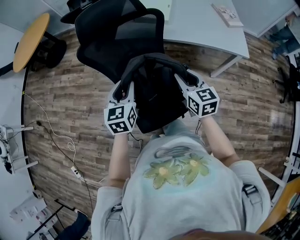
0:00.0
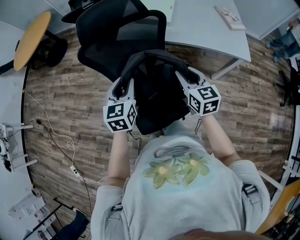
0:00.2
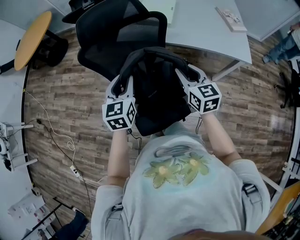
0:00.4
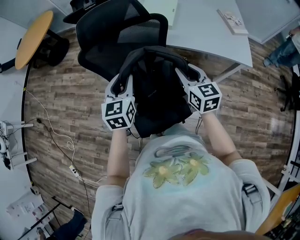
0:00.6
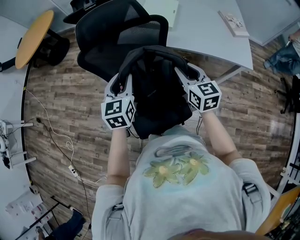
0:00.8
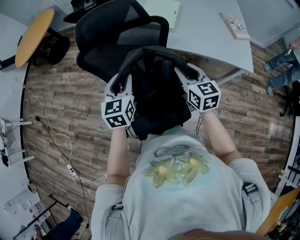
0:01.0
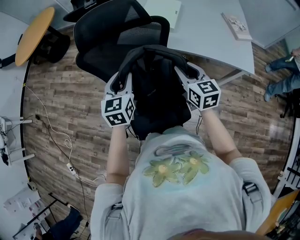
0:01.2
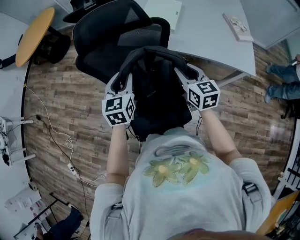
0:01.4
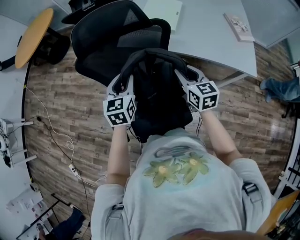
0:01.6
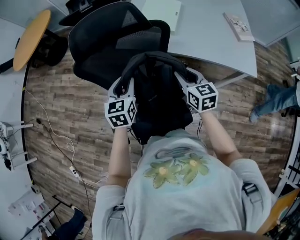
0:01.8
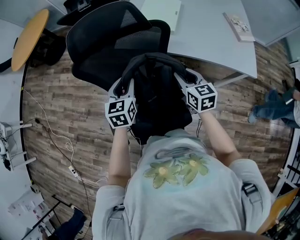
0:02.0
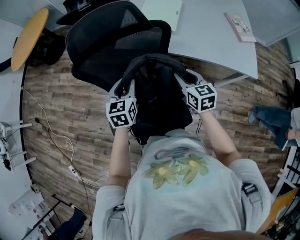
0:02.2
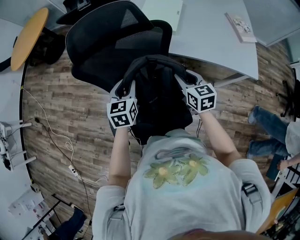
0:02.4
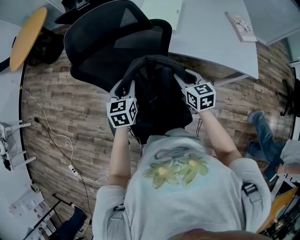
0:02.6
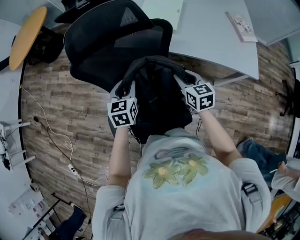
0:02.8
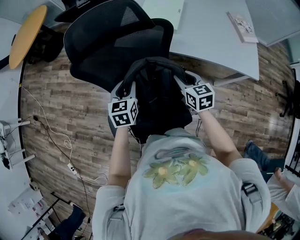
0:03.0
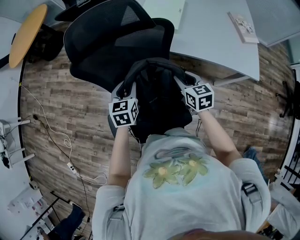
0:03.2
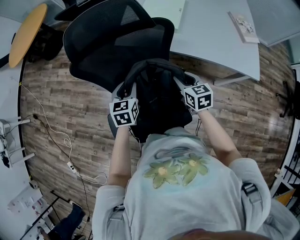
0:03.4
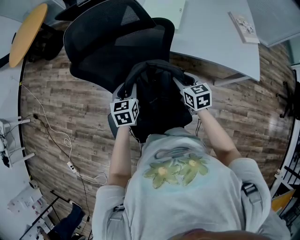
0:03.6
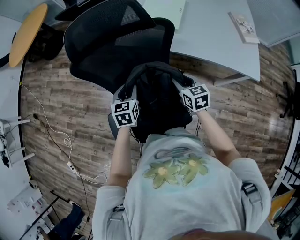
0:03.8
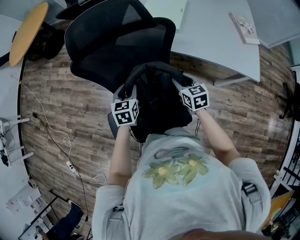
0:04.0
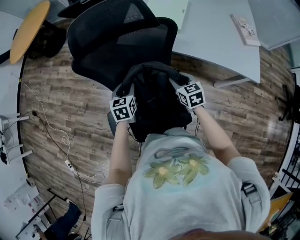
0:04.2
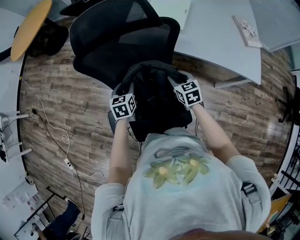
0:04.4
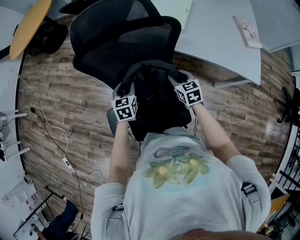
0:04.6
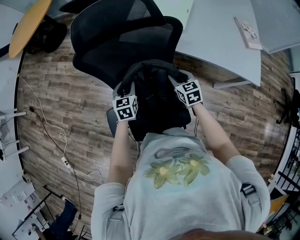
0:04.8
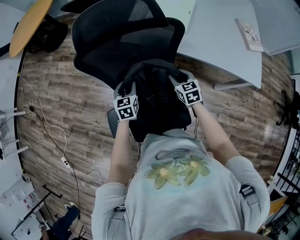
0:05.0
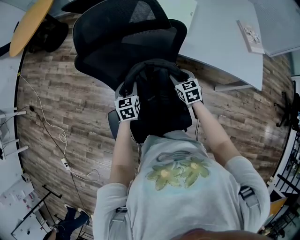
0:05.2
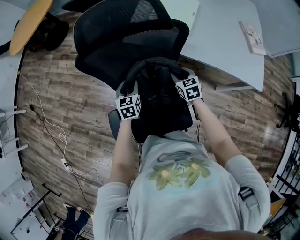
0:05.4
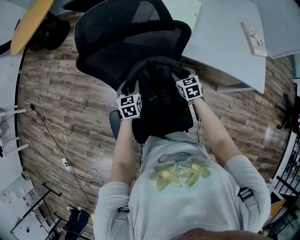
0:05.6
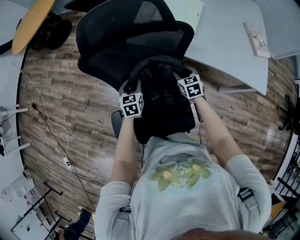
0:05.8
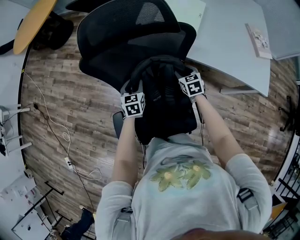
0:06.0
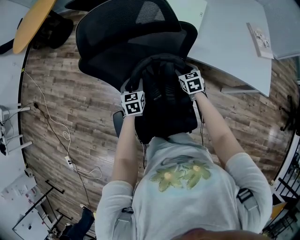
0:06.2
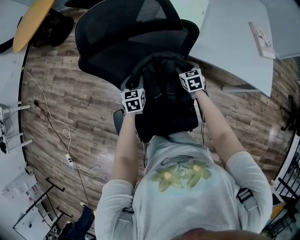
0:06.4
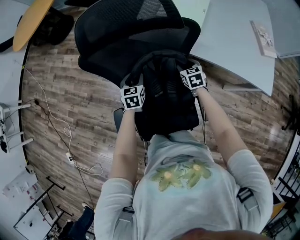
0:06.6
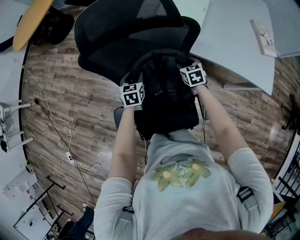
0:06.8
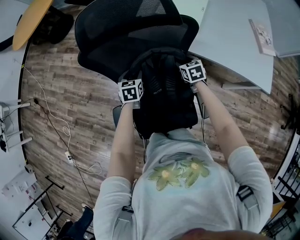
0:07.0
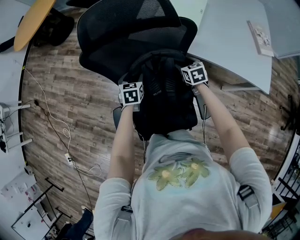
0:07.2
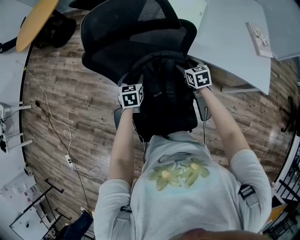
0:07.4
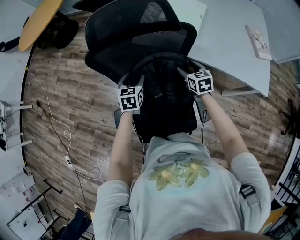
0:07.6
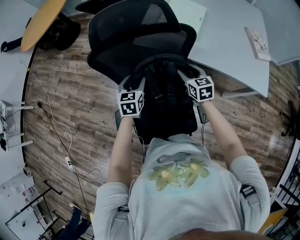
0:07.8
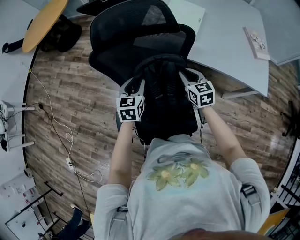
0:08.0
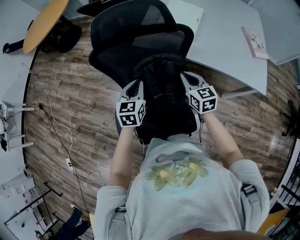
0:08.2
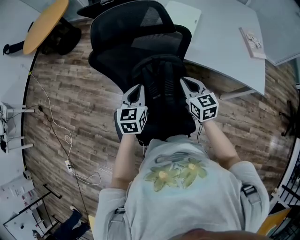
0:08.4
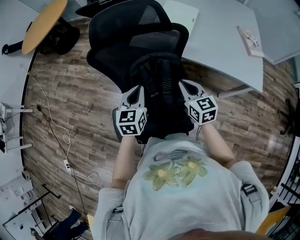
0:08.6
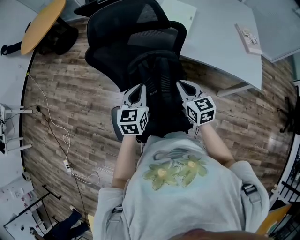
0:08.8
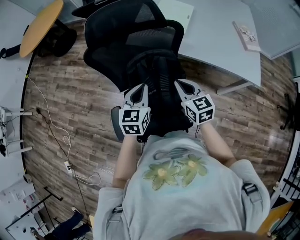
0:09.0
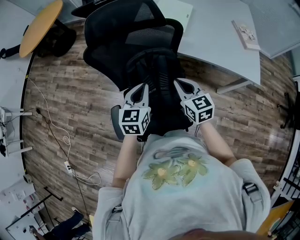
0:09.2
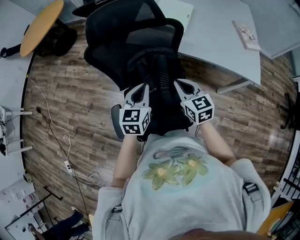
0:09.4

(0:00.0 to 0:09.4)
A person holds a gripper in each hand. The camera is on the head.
0:00.0 - 0:01.6: The two grippers go some 10 cm forward.
0:01.6 - 0:03.2: The grippers both shift downward by about 10 cm.
0:03.2 - 0:04.8: Both grippers travel together downward, roughly 5 cm.
0:04.8 - 0:06.2: The right gripper moves forward and downward, approximately 10 cm, while the left gripper travels forward by some 5 cm.
0:06.2 - 0:07.8: The two grippers go about 10 cm upward.
0:07.8 - 0:09.4: The left gripper goes some 15 cm backward, upward and to the right, and closes its fingers; the right gripper travels backward and upward by about 15 cm, and closes its fingers.

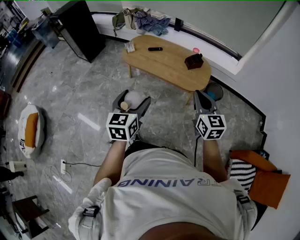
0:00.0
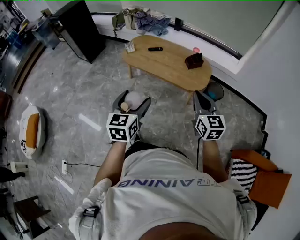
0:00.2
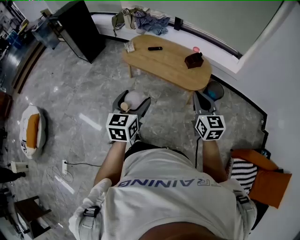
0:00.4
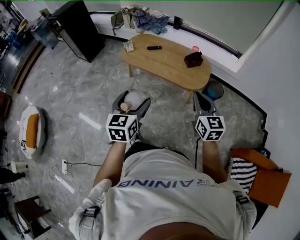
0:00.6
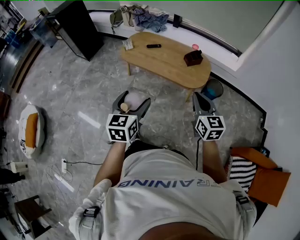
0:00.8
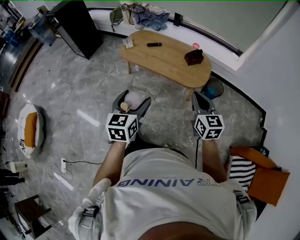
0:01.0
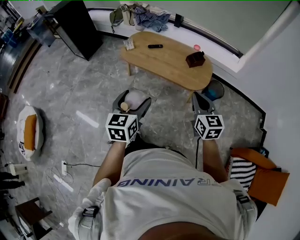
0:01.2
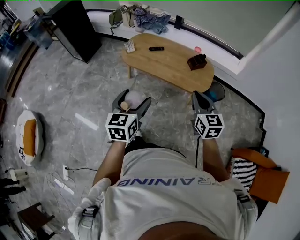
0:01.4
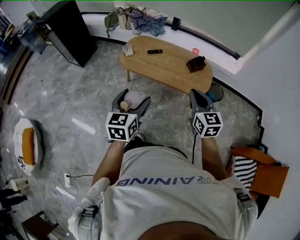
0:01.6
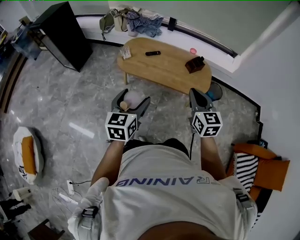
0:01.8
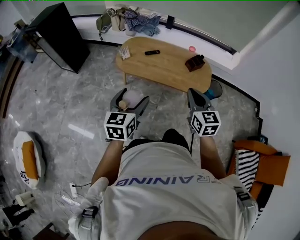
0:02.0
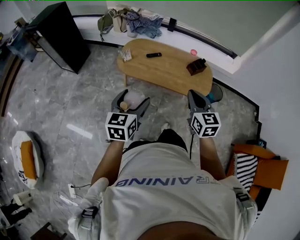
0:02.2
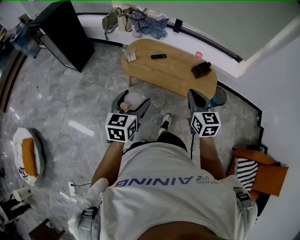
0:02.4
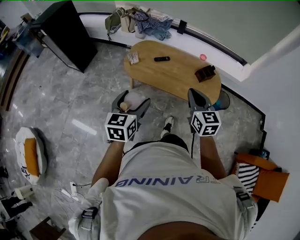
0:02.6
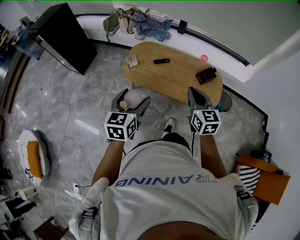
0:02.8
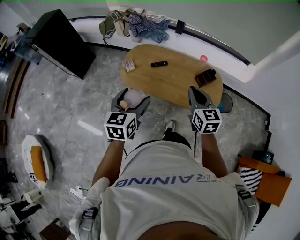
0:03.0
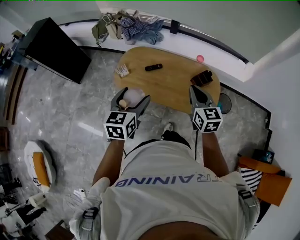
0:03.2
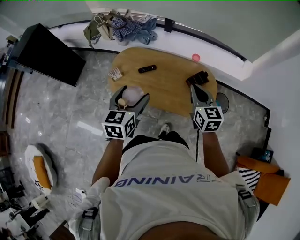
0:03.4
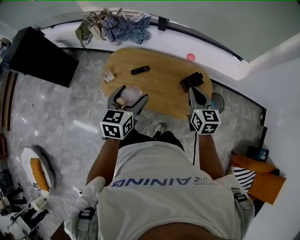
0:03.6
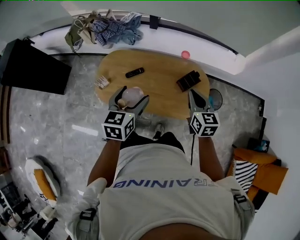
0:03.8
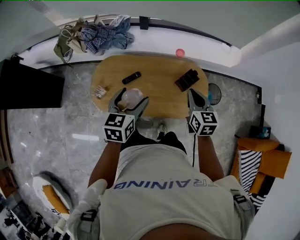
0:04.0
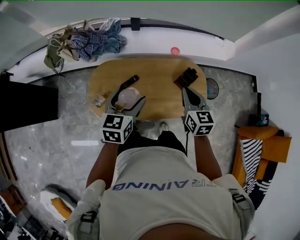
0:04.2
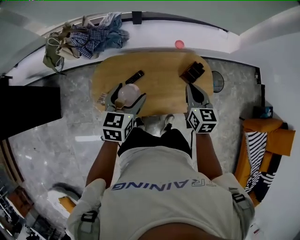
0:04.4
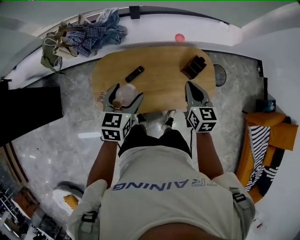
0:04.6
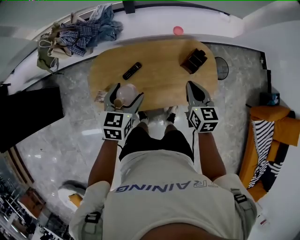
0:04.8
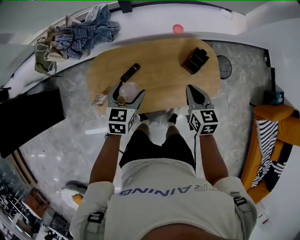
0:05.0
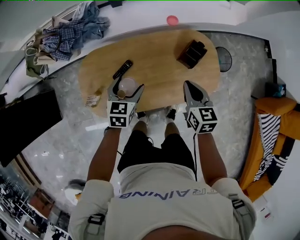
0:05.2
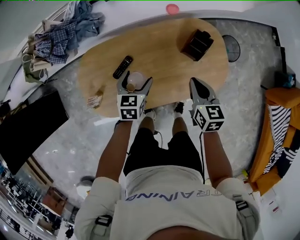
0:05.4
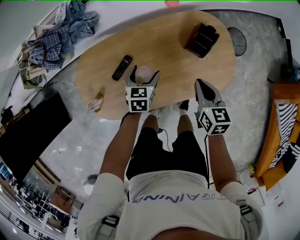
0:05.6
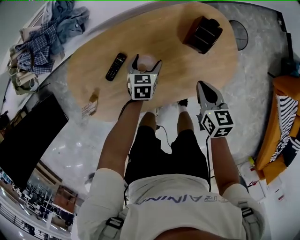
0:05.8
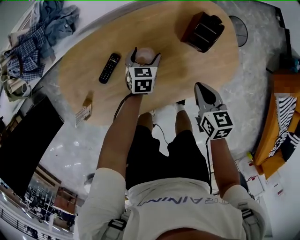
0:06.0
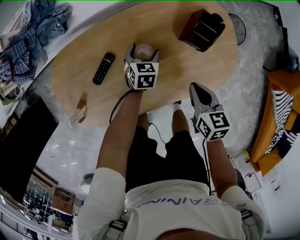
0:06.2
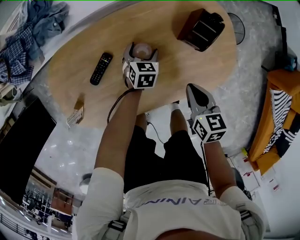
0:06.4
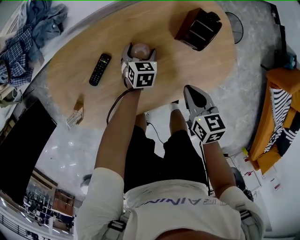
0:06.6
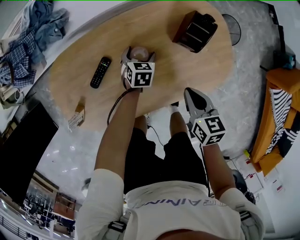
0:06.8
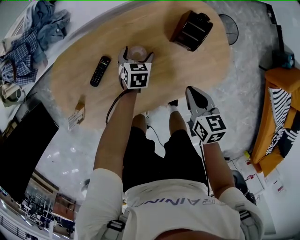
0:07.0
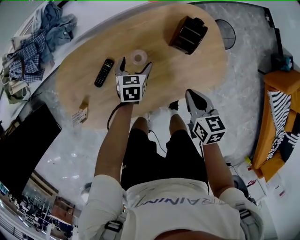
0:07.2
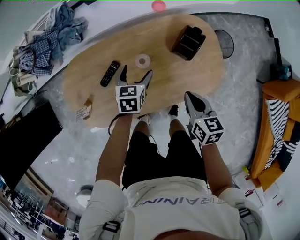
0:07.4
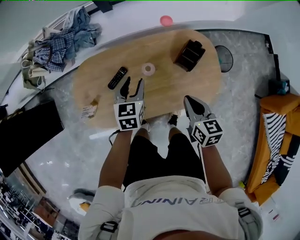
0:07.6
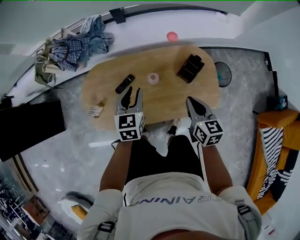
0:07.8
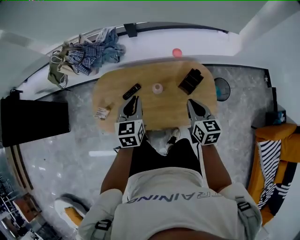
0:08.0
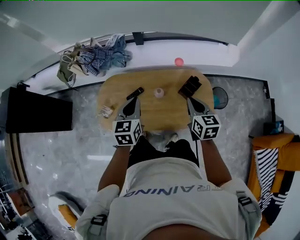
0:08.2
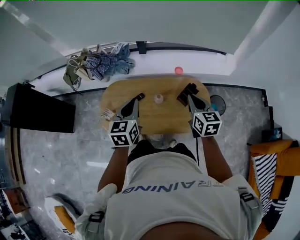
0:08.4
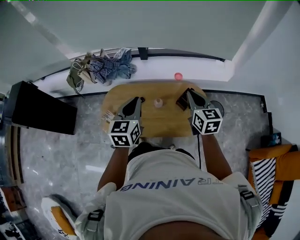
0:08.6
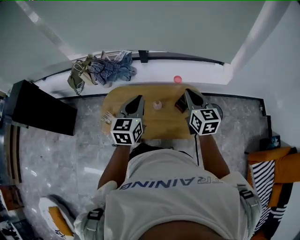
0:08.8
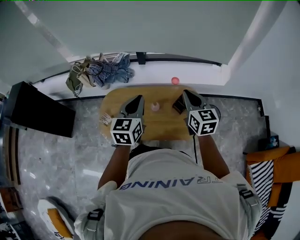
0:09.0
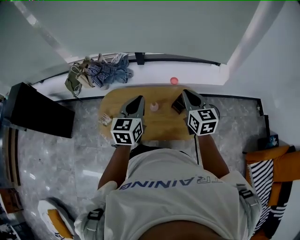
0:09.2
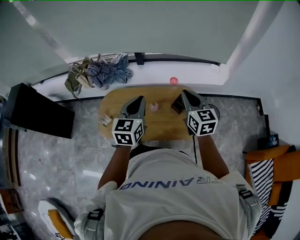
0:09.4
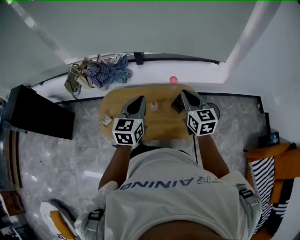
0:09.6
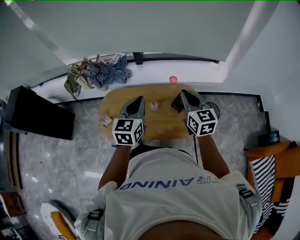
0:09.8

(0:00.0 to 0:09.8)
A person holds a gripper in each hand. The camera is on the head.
0:00.0 - 0:01.4: The left gripper goes roughly 10 cm forward and to the left; the right gripper moves to the left and forward, some 10 cm.
0:01.4 - 0:02.8: Both grippers move forward and to the left, about 25 cm.
0:02.8 - 0:04.2: The right gripper shifts by some 30 cm, and rotates about 30 degrees, while the left gripper changes place by some 40 cm, and swivels about 30 degrees.
0:04.2 - 0:05.6: The grippers both shift downward by about 30 cm. The right gripper swivels about 20 degrees, while the left gripper turns by some 20 degrees.
0:05.6 - 0:07.0: The left gripper travels downward, forward and to the right by approximately 15 cm; the right gripper travels downward by approximately 5 cm.
0:07.0 - 0:08.4: The left gripper goes approximately 50 cm upward, points its fingers approximately 30 degrees further upward, and closes its fingers, while the right gripper shifts roughly 35 cm upward, and swivels some 30 degrees.
0:08.4 - 0:09.8: The left gripper heads to the right and upward, covering roughly 10 cm, while the right gripper is displaced upward by approximately 10 cm.

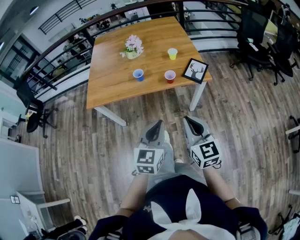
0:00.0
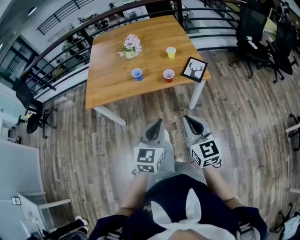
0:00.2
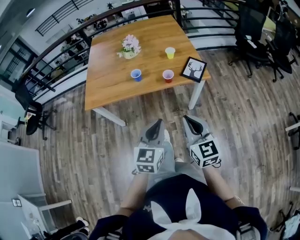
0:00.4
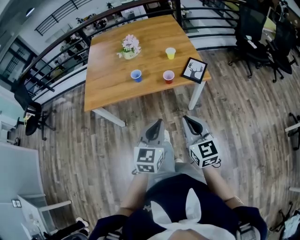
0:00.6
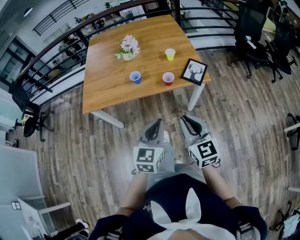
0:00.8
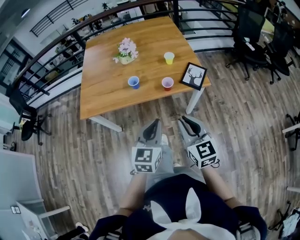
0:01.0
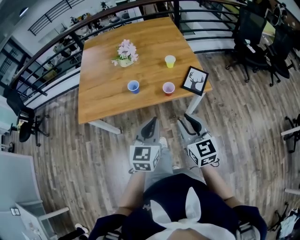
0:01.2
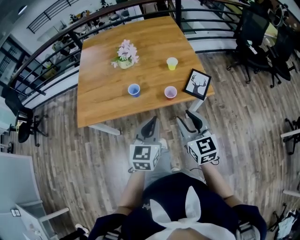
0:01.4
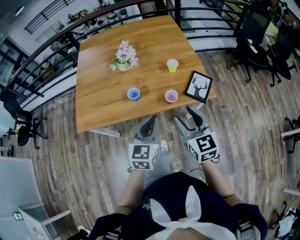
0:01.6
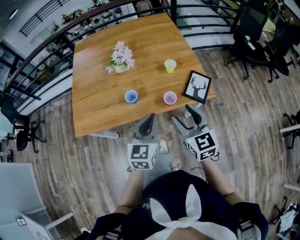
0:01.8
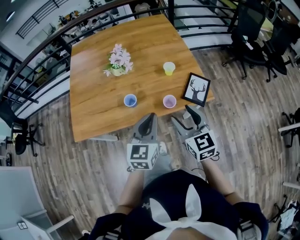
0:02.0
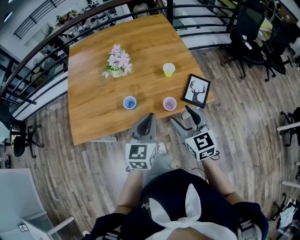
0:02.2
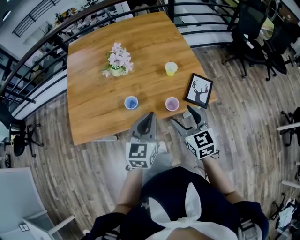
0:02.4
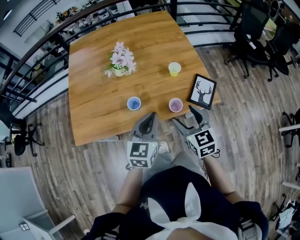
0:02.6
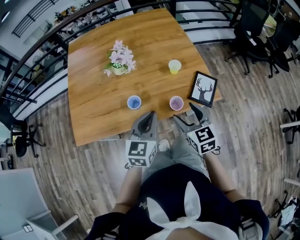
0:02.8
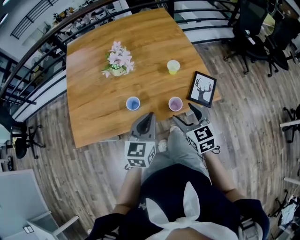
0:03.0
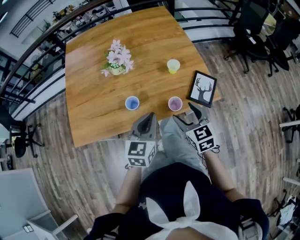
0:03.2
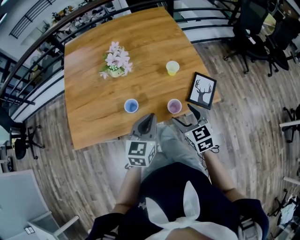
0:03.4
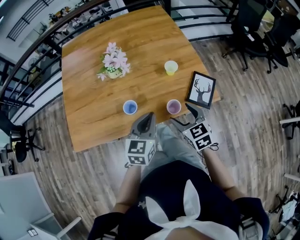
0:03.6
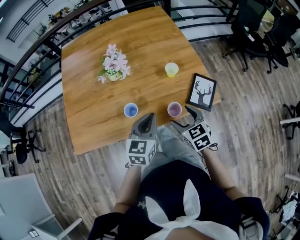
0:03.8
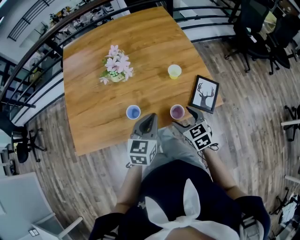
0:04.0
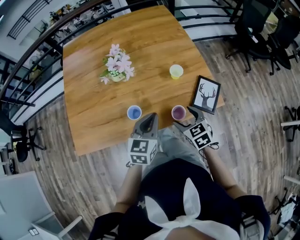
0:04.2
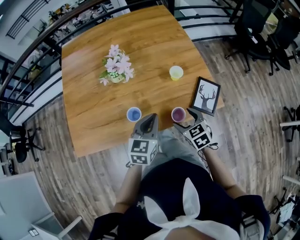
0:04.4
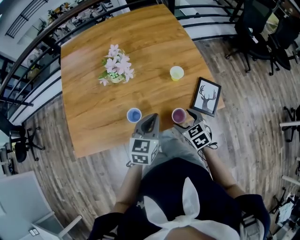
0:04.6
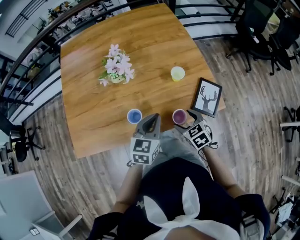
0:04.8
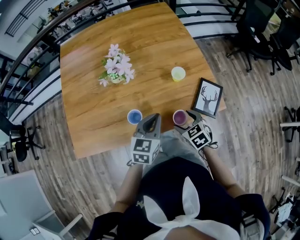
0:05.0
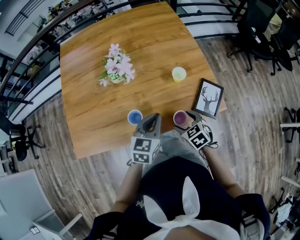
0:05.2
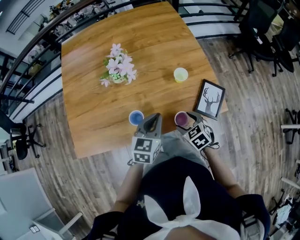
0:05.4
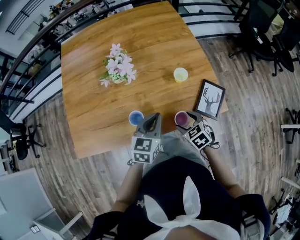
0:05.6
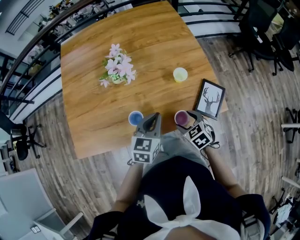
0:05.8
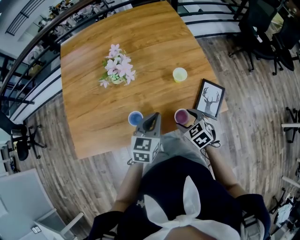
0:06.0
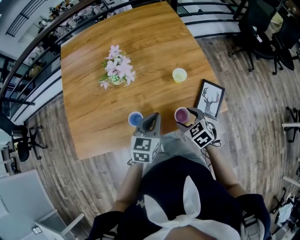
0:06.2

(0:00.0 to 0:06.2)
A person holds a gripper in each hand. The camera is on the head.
0:00.0 - 0:01.6: Both grippers travel together forward, roughly 25 cm. The right gripper opens up.
0:01.6 - 0:03.2: Both grippers travel together forward and downward, approximately 15 cm.
0:03.2 - 0:04.6: The left gripper heads forward, covering roughly 10 cm, while the right gripper goes approximately 10 cm downward and forward.
0:04.6 - 0:06.2: The grippers make only small movements.
